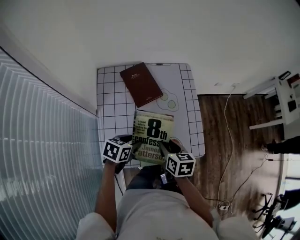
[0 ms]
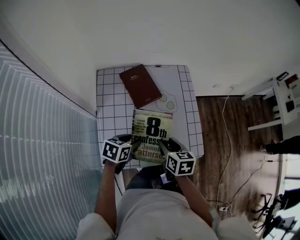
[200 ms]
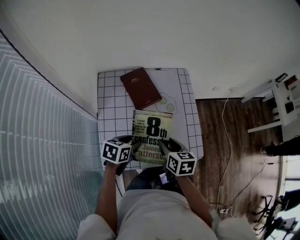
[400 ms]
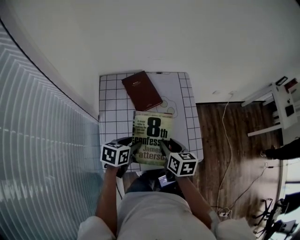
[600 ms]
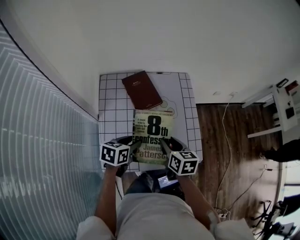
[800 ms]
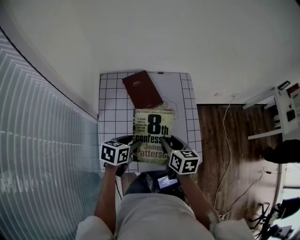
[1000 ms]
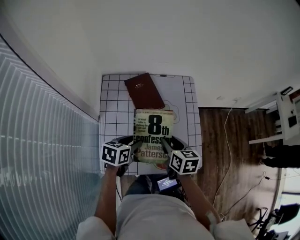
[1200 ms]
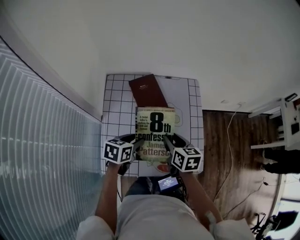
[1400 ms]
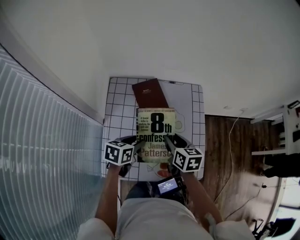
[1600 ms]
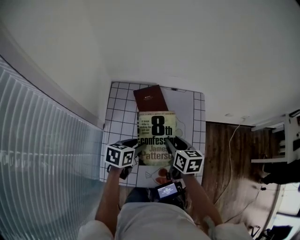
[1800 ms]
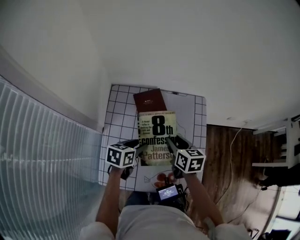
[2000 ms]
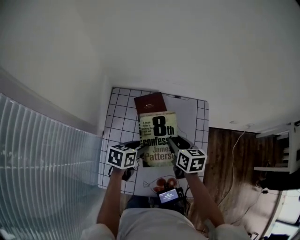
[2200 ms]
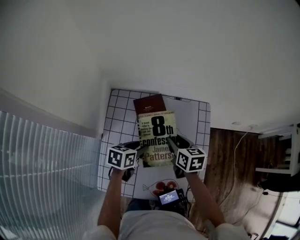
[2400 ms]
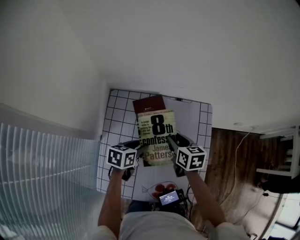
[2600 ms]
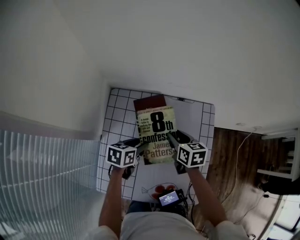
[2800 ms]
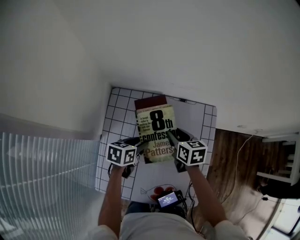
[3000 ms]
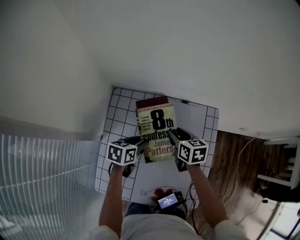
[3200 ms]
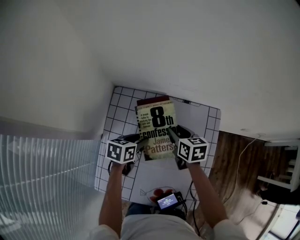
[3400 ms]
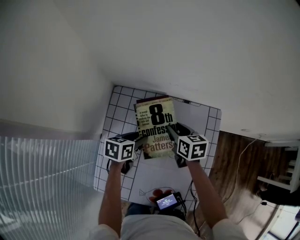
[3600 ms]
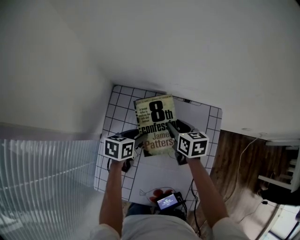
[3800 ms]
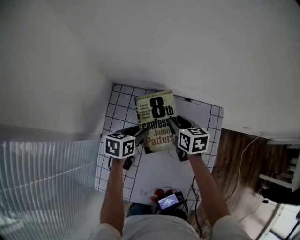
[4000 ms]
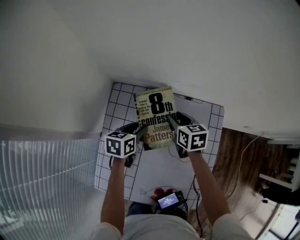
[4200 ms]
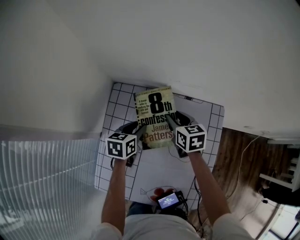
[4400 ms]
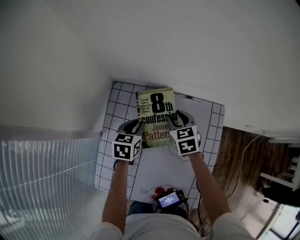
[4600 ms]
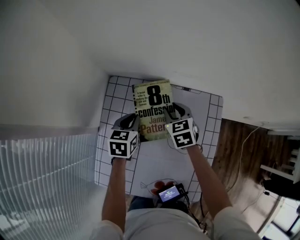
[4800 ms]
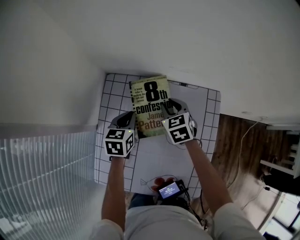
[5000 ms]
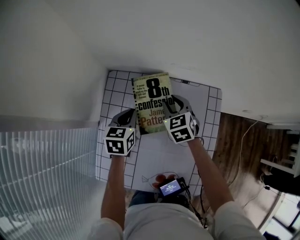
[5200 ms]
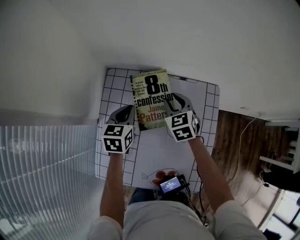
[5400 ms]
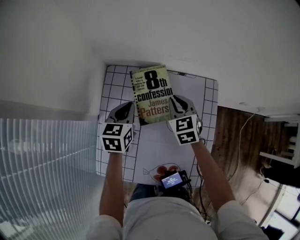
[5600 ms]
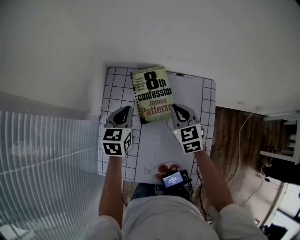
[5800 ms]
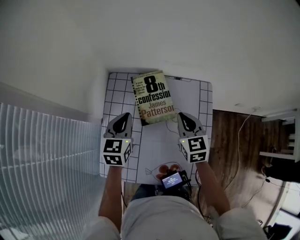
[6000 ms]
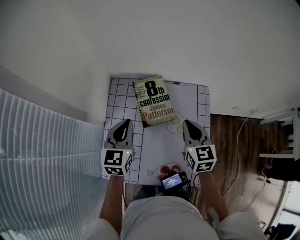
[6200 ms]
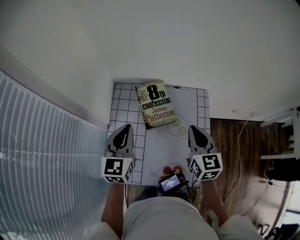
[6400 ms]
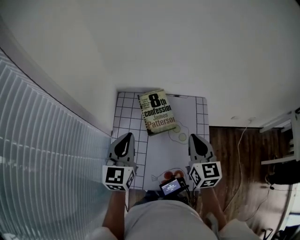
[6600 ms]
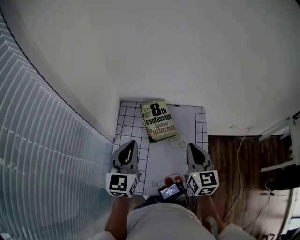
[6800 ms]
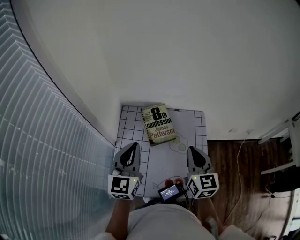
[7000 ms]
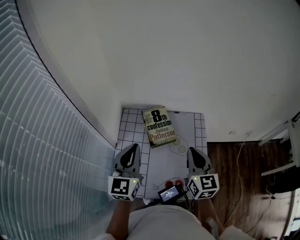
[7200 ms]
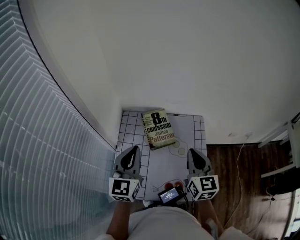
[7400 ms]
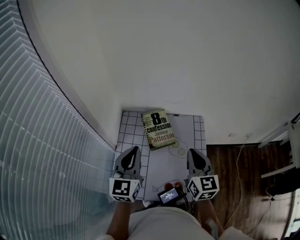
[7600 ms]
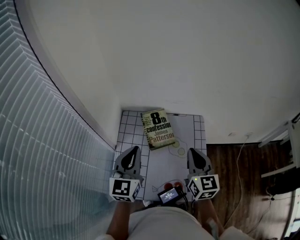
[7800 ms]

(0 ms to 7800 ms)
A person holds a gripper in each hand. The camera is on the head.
0 ms - 1600 ms: The left gripper shifts approximately 10 cm forward; the right gripper is displaced forward by about 10 cm.
1600 ms - 3200 ms: The right gripper shifts approximately 20 cm forward. The left gripper heads forward and downward, covering approximately 15 cm.
3200 ms - 4600 ms: The two grippers go some 5 cm forward. The right gripper changes its angle by about 30 degrees, while the left gripper changes its angle by some 20 degrees.
4600 ms - 6200 ms: The left gripper is displaced upward and backward by roughly 20 cm, and swivels some 30 degrees; the right gripper moves backward and upward, roughly 20 cm, swivels some 20 degrees, and closes its fingers.
6200 ms - 7800 ms: Both grippers move upward and backward, about 15 cm.

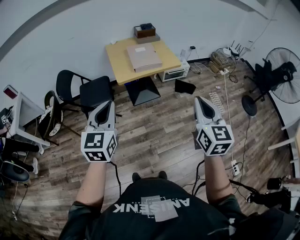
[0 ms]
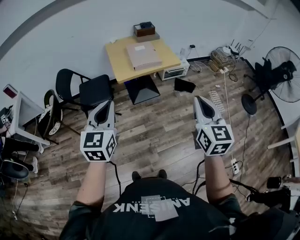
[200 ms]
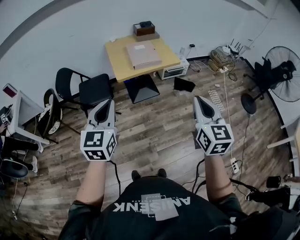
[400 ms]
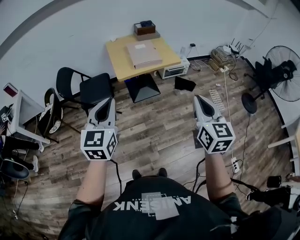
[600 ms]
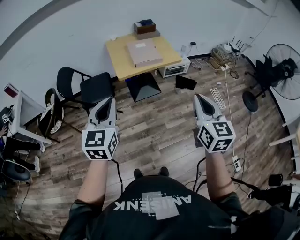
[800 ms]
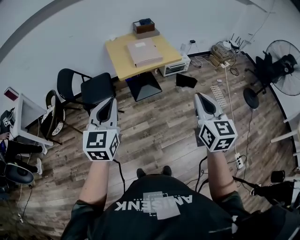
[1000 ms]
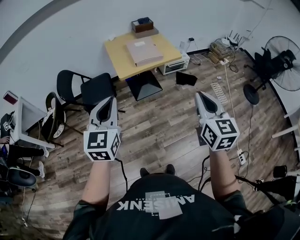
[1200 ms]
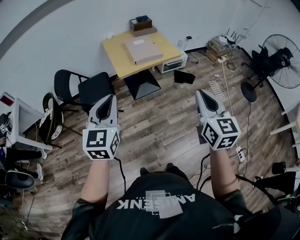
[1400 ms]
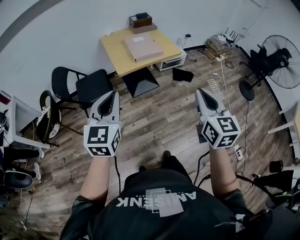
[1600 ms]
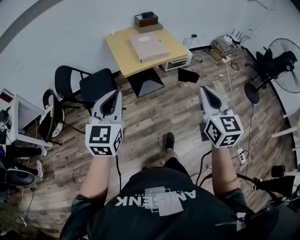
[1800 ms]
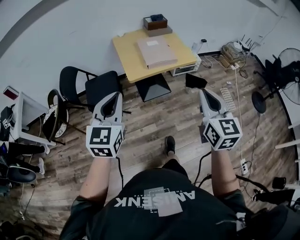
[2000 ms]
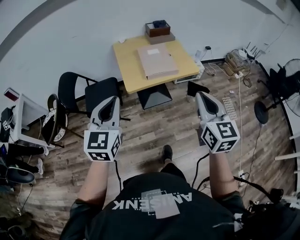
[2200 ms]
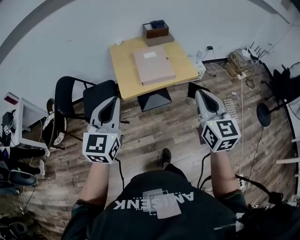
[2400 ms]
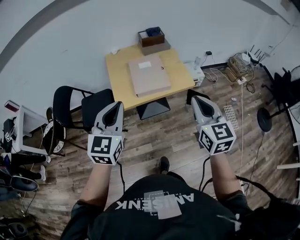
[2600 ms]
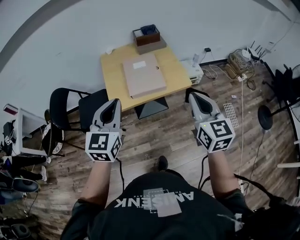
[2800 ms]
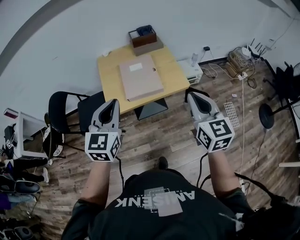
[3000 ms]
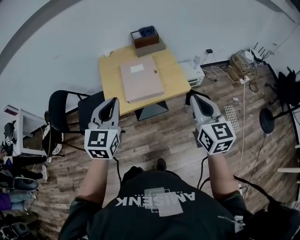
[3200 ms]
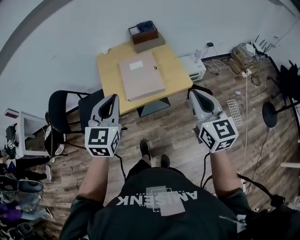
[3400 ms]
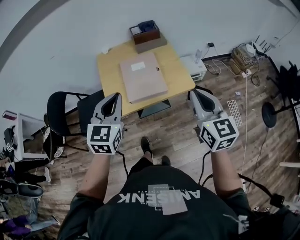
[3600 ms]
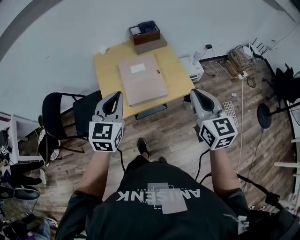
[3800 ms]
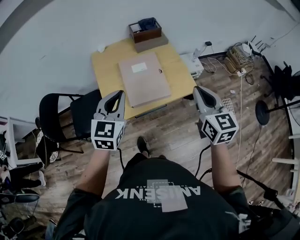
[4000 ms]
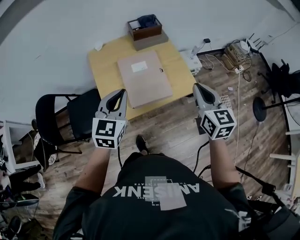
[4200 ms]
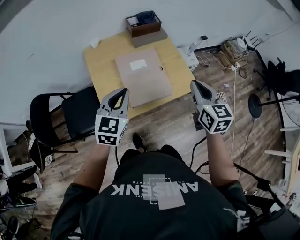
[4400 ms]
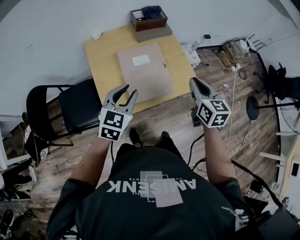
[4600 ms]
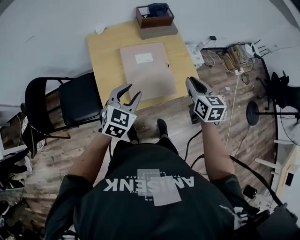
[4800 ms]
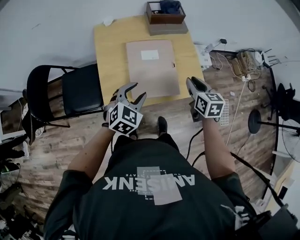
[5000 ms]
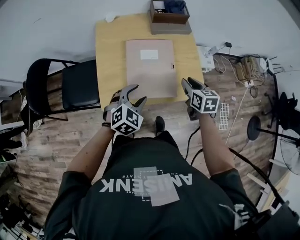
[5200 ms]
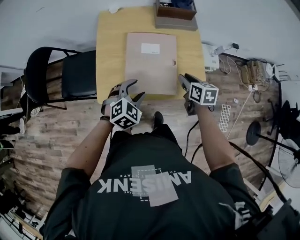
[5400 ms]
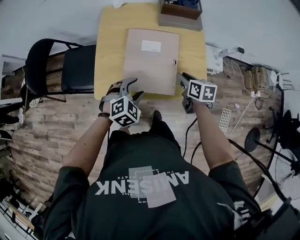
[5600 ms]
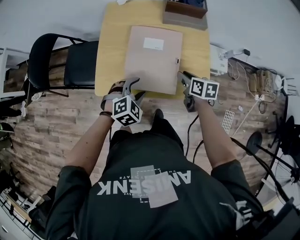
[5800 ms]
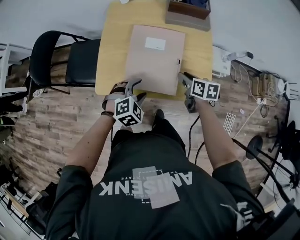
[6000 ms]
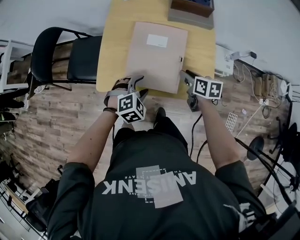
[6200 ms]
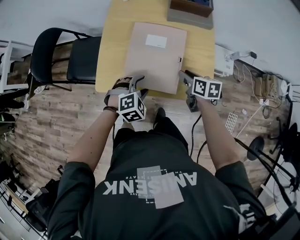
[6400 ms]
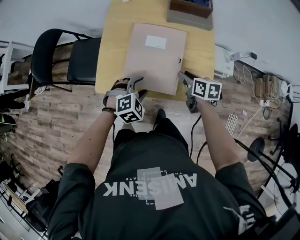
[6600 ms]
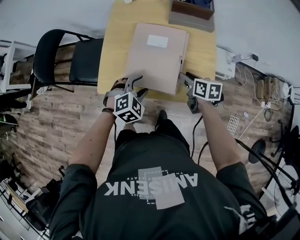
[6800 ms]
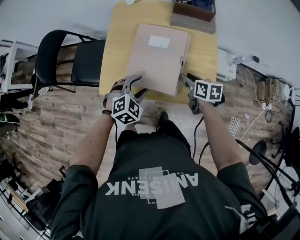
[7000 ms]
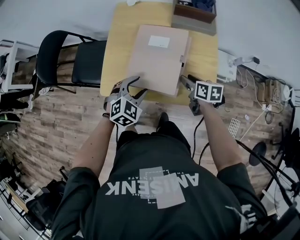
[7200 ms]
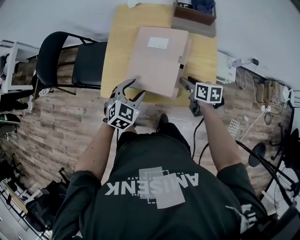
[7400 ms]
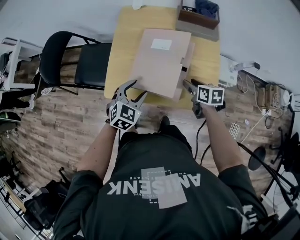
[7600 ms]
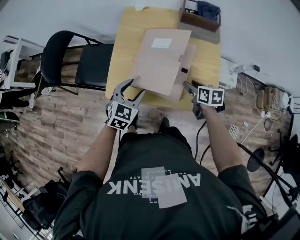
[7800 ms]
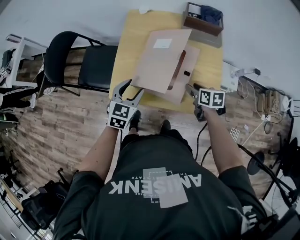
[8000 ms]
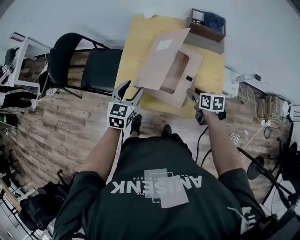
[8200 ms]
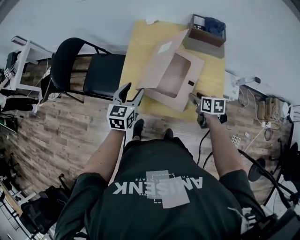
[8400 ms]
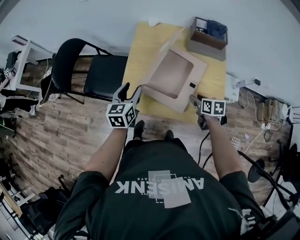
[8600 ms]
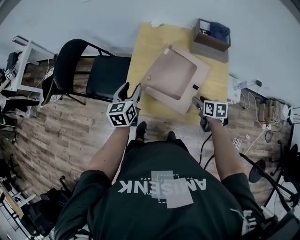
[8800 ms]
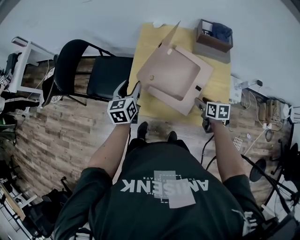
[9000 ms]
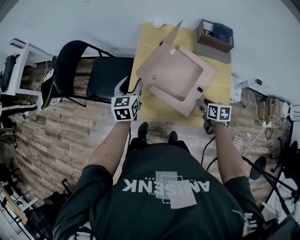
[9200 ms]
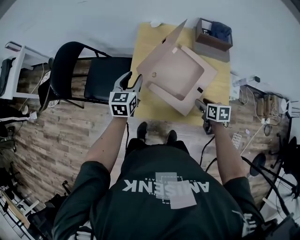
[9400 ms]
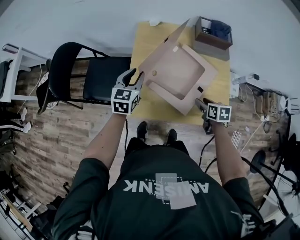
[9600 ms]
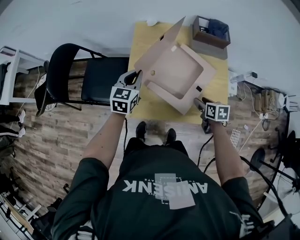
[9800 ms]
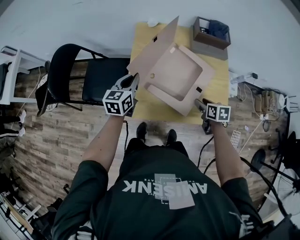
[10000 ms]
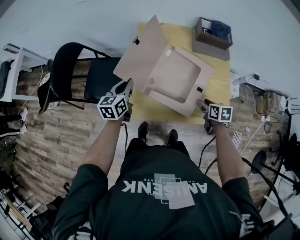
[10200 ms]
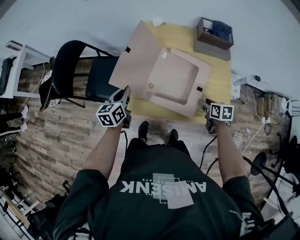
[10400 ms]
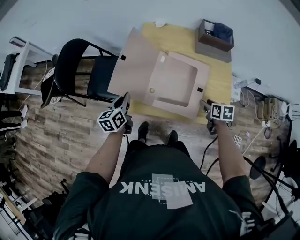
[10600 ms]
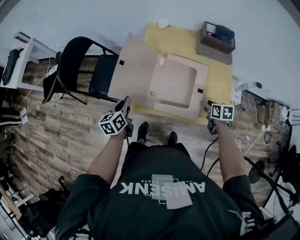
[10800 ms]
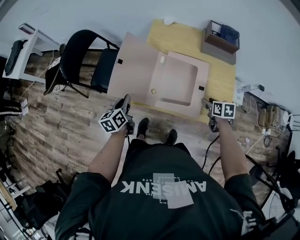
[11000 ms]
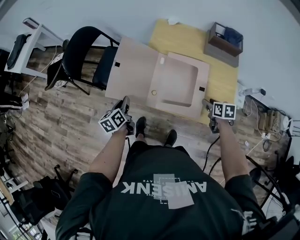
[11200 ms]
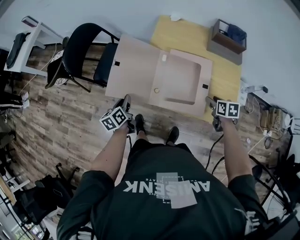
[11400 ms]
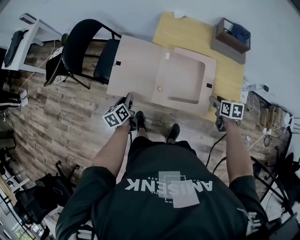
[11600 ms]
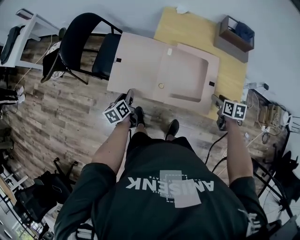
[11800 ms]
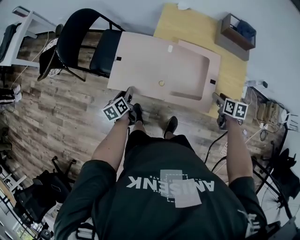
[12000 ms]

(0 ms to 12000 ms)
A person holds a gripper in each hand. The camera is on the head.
0 ms - 1600 ms: The right gripper heads to the left, covering some 5 cm.
1600 ms - 3000 ms: The left gripper travels forward and to the right by some 35 cm, while the right gripper goes about 40 cm forward.
3000 ms - 4400 ms: The two grippers go approximately 20 cm forward and downward.
4400 ms - 6000 ms: The two grippers go some 25 cm downward. The right gripper changes its angle by about 50 degrees, and opens up. Meanwhile the left gripper tips its fingers downward by some 30 degrees, and opens up.
6000 ms - 7600 ms: The left gripper shifts by some 5 cm, and changes its angle by some 30 degrees.
7600 ms - 9000 ms: The left gripper goes roughly 20 cm to the left and forward, and rotates around the line of its fingers by approximately 40 degrees, counterclockwise from behind.
9000 ms - 10400 ms: The left gripper goes some 5 cm to the left, and closes.
10400 ms - 12000 ms: The left gripper is displaced downward, to the left and backward by roughly 20 cm, turns by about 30 degrees, and opens its fingers.

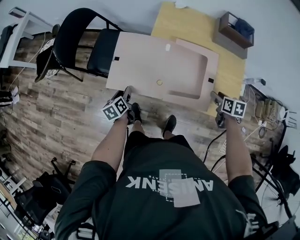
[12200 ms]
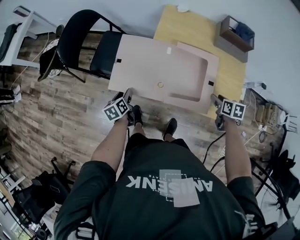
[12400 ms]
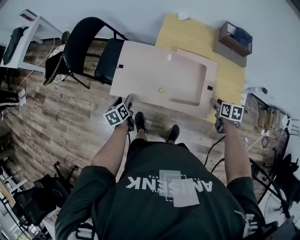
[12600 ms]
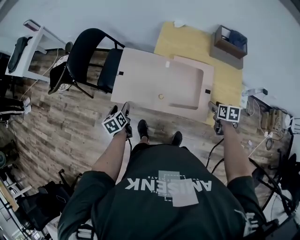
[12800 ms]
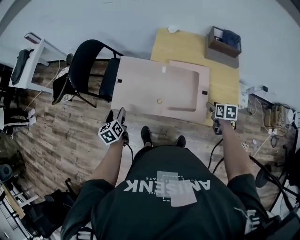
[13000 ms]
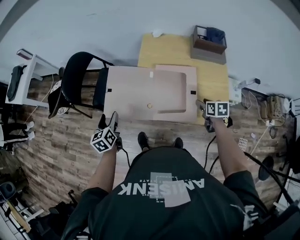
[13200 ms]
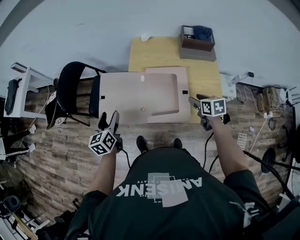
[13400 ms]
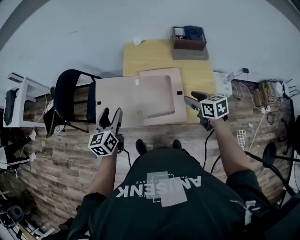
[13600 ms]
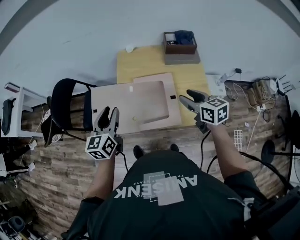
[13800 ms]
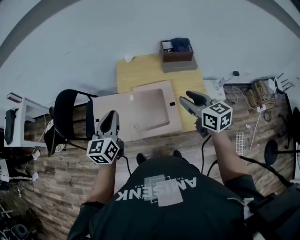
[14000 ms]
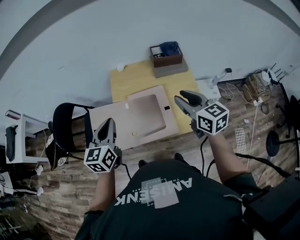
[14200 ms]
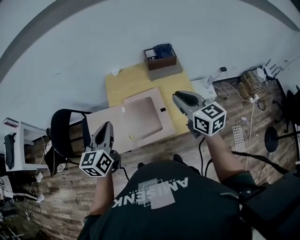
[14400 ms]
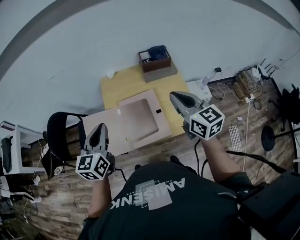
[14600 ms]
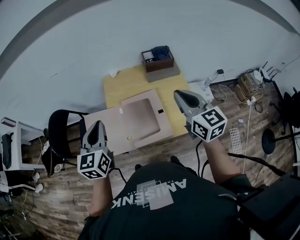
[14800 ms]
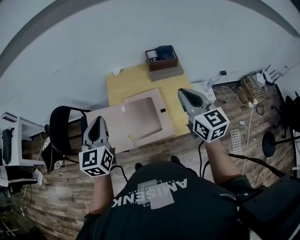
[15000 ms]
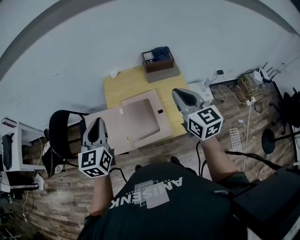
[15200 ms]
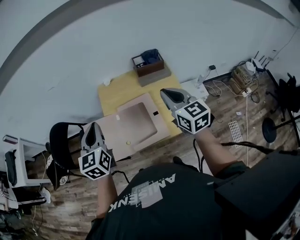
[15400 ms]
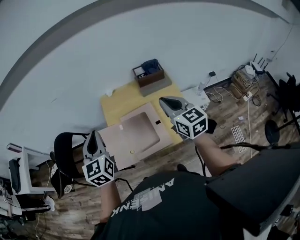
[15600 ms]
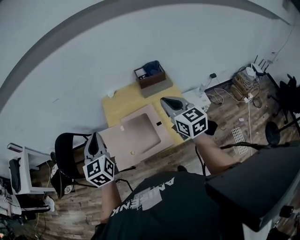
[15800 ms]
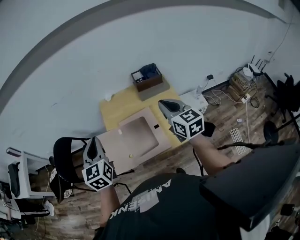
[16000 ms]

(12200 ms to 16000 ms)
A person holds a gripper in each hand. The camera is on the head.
12200 ms - 13400 ms: The right gripper goes about 5 cm upward, while the left gripper is displaced upward by approximately 20 cm, turns by roughly 30 degrees, and opens.
13400 ms - 14800 ms: The left gripper travels upward and to the right by approximately 25 cm, changes its angle by some 30 degrees, and closes up, while the right gripper heads upward, covering approximately 30 cm, tips its fingers upward by roughly 40 degrees, and closes.
14800 ms - 16000 ms: There are only small adjustments of the grippers.
